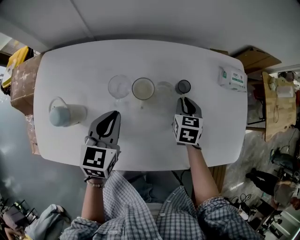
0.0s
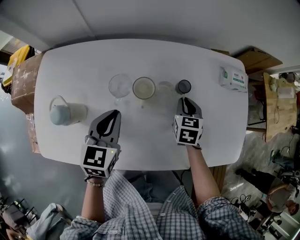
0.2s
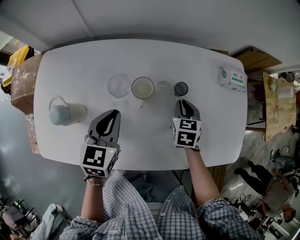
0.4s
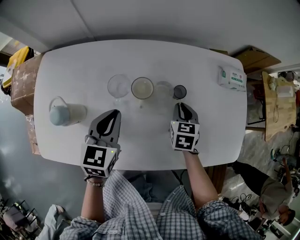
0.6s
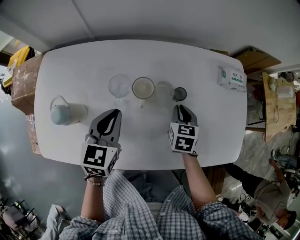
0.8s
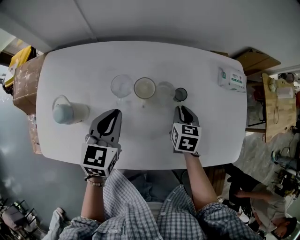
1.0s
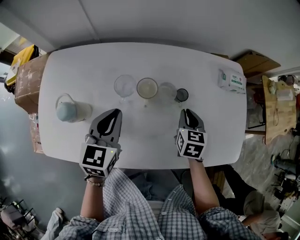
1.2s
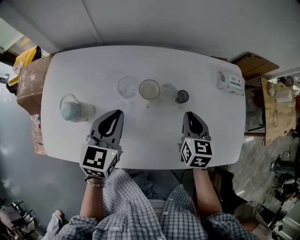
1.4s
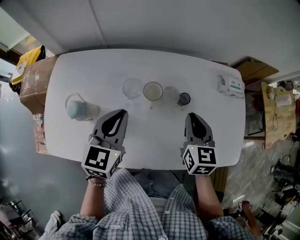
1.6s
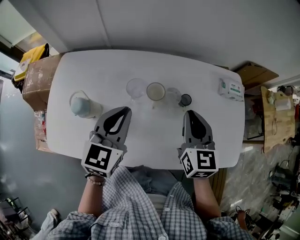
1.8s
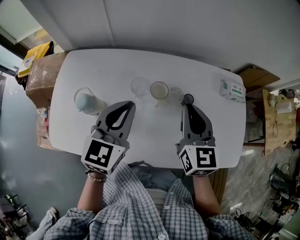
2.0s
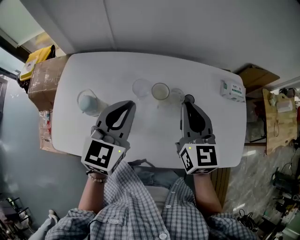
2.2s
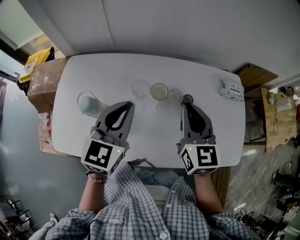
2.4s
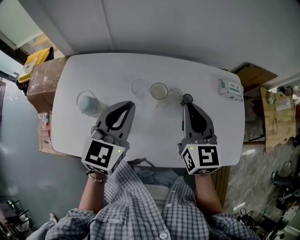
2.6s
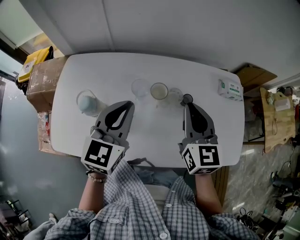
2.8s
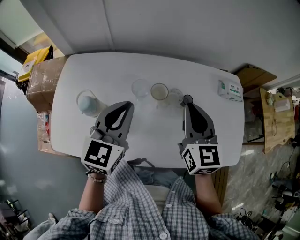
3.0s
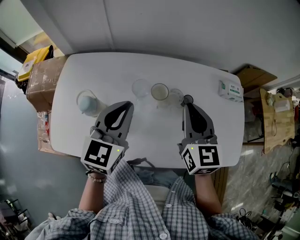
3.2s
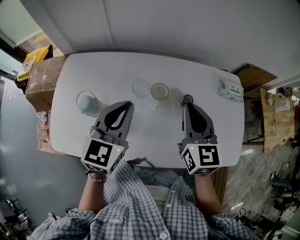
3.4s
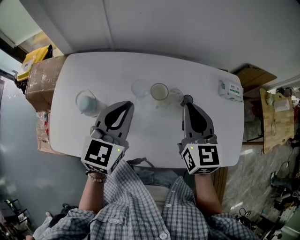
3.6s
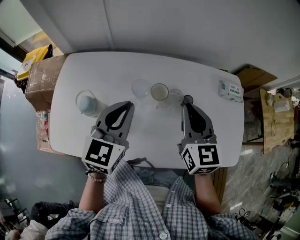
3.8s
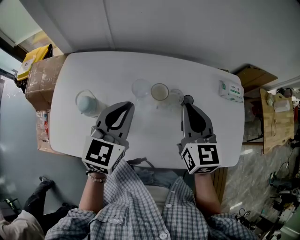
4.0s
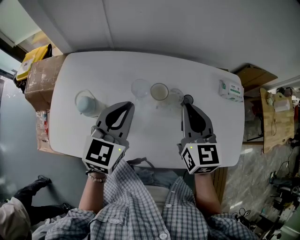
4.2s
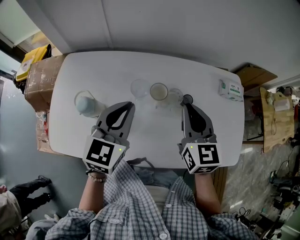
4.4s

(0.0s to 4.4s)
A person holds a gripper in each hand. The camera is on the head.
0.0s - 1.4s: The right gripper travels upward and backward by some 10 cm, while the left gripper changes place by about 5 cm.
1.4s - 3.0s: The right gripper shifts roughly 15 cm upward and to the left, and turns by some 20 degrees; the left gripper shifts approximately 10 cm upward.
3.0s - 4.4s: There are only small adjustments of the grippers.

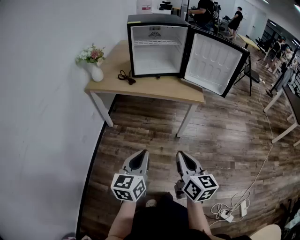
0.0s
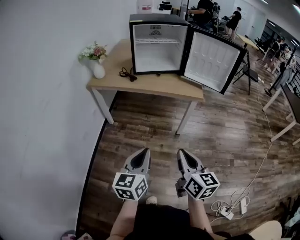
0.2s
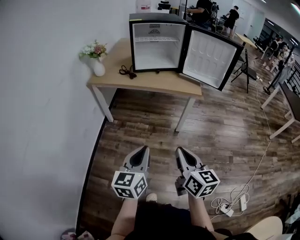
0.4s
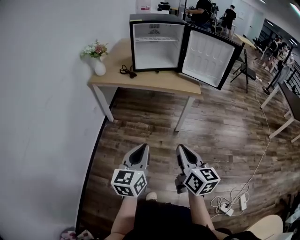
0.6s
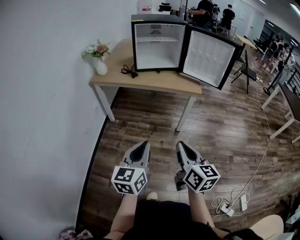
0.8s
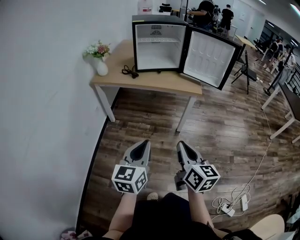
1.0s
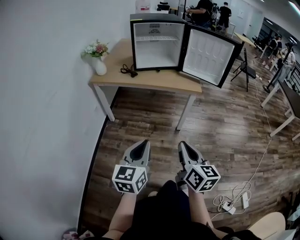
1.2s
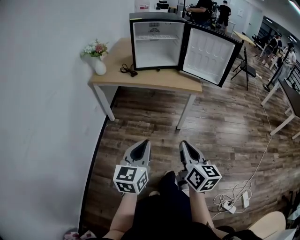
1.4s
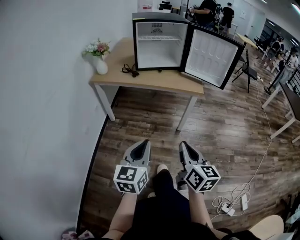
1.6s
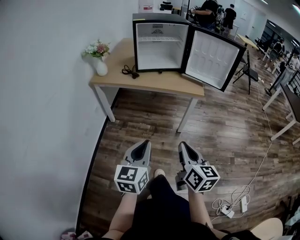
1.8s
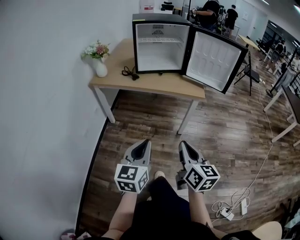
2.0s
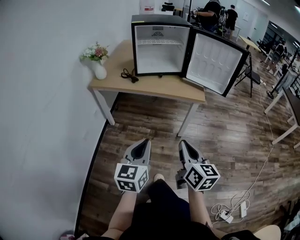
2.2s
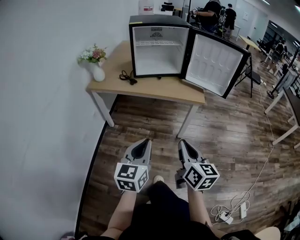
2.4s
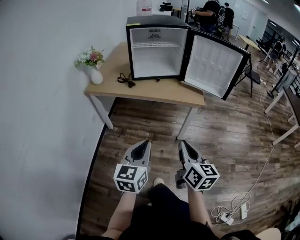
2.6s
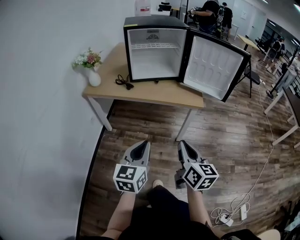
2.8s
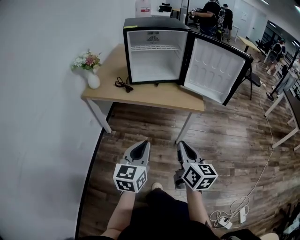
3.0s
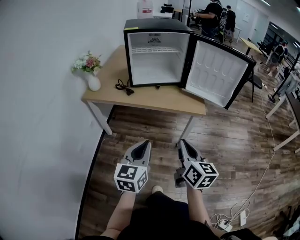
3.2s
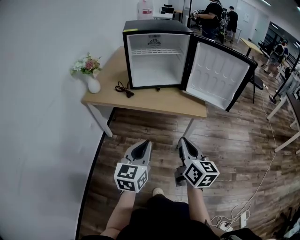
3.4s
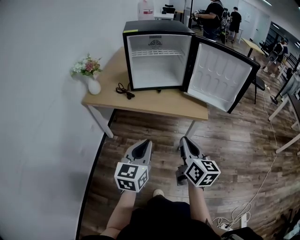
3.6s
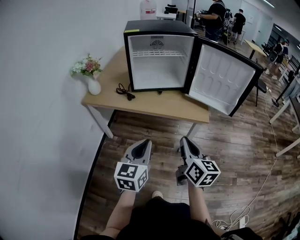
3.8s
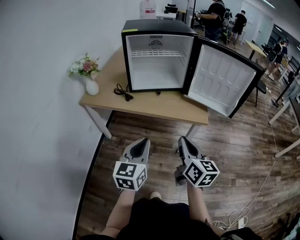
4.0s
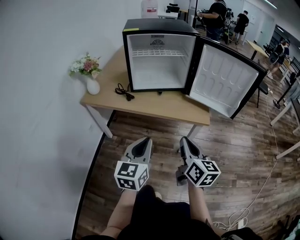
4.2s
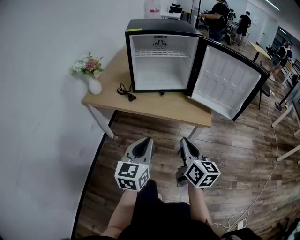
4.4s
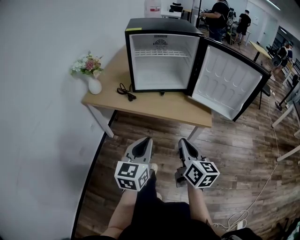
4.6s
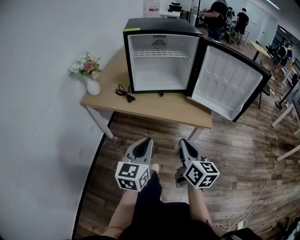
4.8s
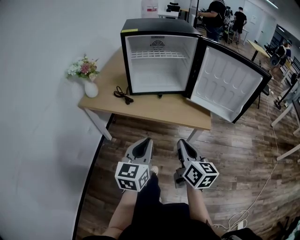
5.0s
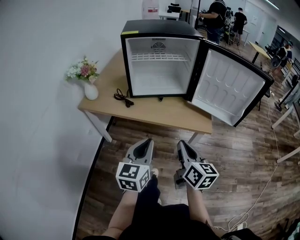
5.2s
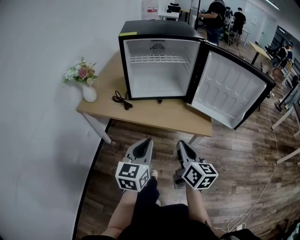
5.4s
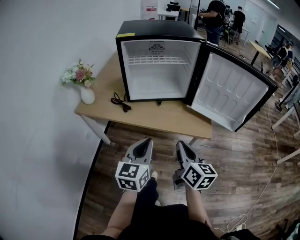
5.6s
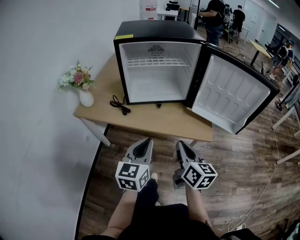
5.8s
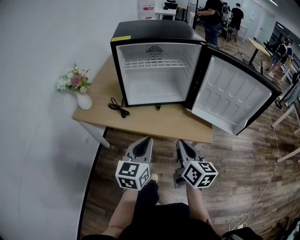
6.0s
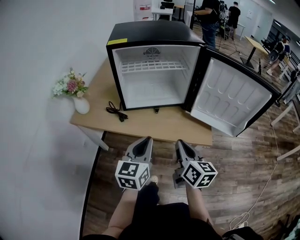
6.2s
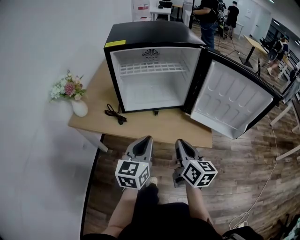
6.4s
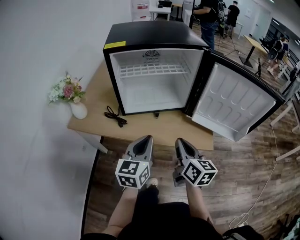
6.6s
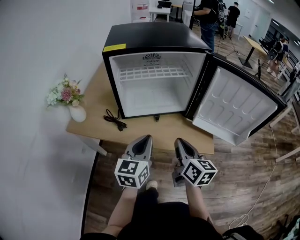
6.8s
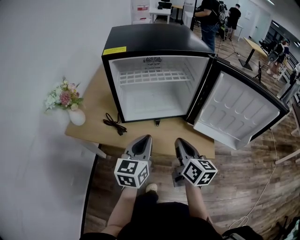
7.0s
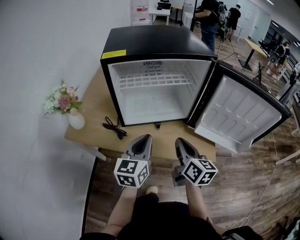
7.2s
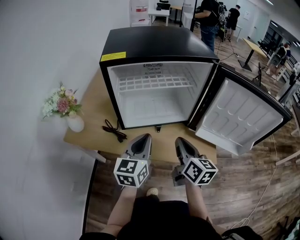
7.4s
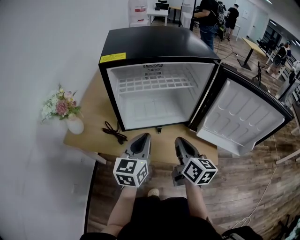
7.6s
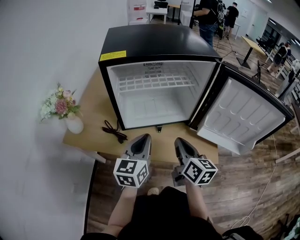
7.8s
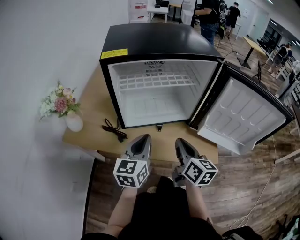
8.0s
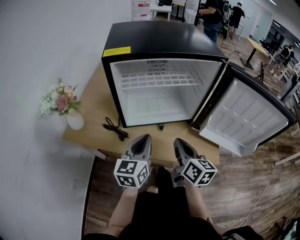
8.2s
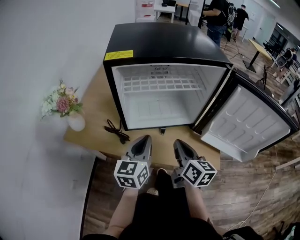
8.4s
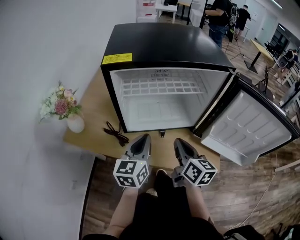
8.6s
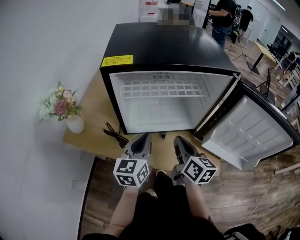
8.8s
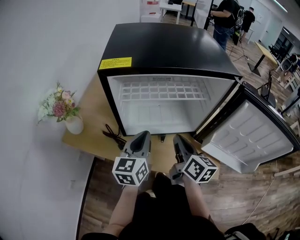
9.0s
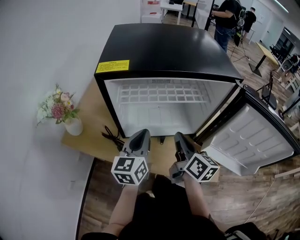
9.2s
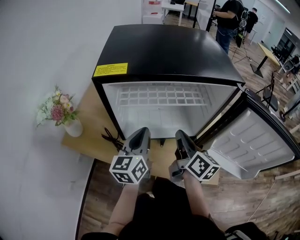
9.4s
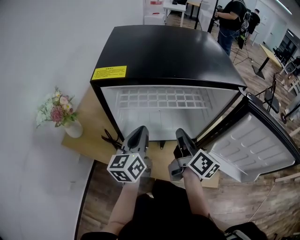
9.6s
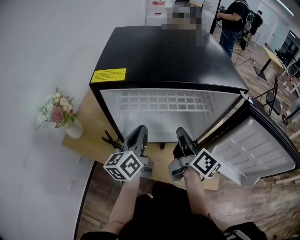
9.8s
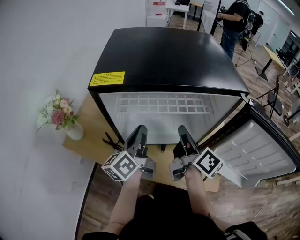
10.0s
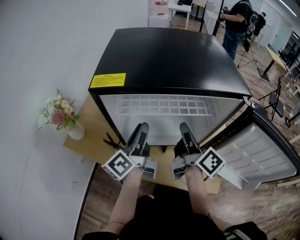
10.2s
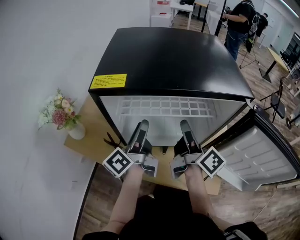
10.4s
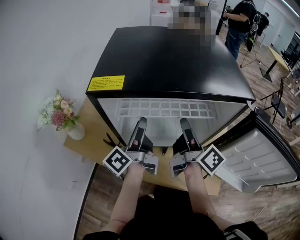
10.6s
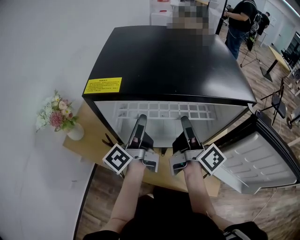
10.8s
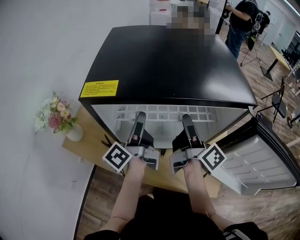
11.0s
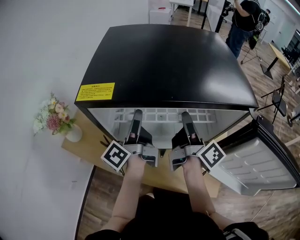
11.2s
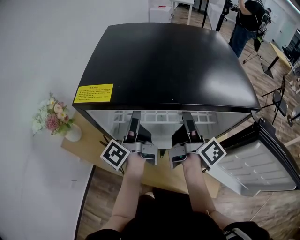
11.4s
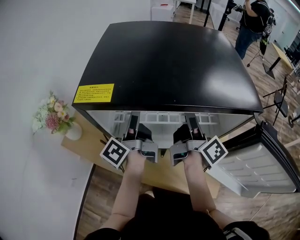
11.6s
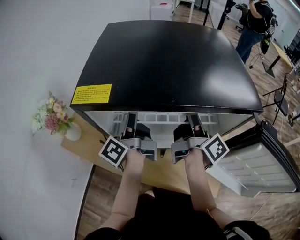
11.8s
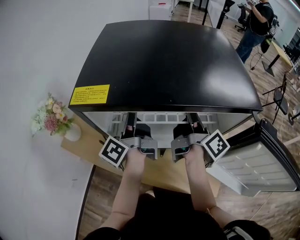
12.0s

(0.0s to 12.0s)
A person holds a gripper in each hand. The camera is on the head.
0.0s - 1.6s: The two grippers go approximately 5 cm backward.
1.6s - 3.0s: The grippers both shift forward by some 15 cm.
3.0s - 4.4s: Both grippers travel together forward, approximately 10 cm.
4.4s - 6.0s: The grippers both shift forward by about 15 cm.
6.0s - 7.6s: Both grippers travel together forward, some 20 cm.
7.6s - 9.0s: Both grippers move forward, some 10 cm.
9.0s - 10.4s: The right gripper is displaced forward and upward by about 10 cm, turns by approximately 30 degrees, and opens its fingers, while the left gripper heads forward, covering about 10 cm, rotates around the line of its fingers by some 50 degrees, counterclockwise from behind, and opens its fingers.
10.4s - 12.0s: The grippers both shift forward by approximately 10 cm. The right gripper closes up.

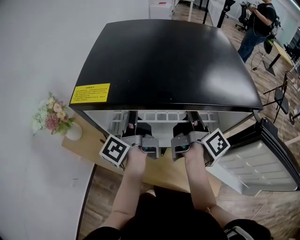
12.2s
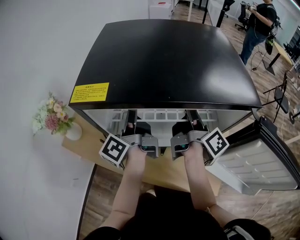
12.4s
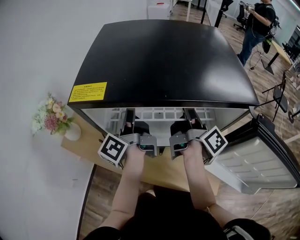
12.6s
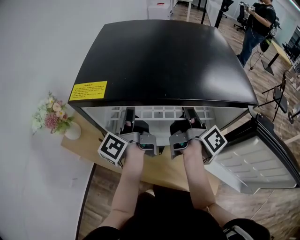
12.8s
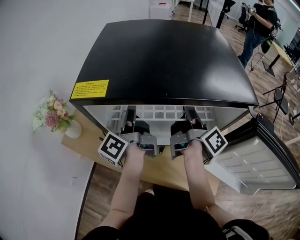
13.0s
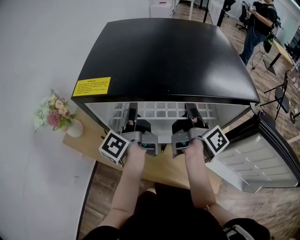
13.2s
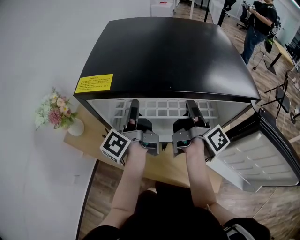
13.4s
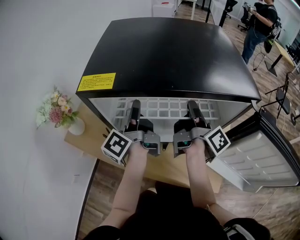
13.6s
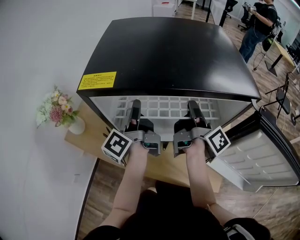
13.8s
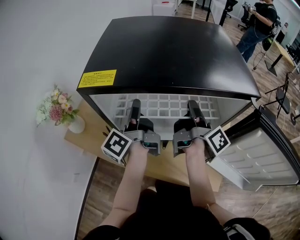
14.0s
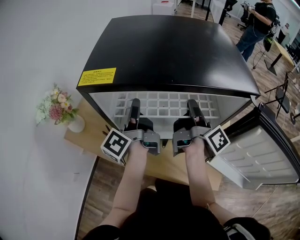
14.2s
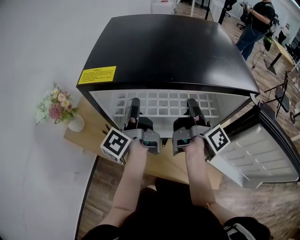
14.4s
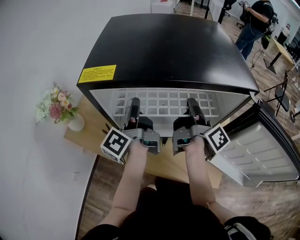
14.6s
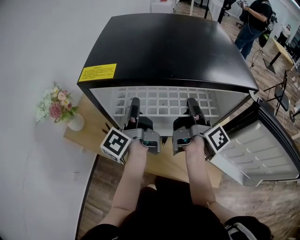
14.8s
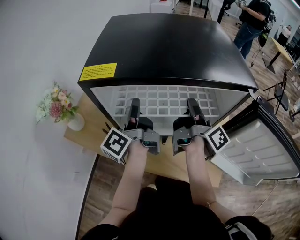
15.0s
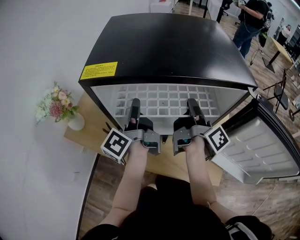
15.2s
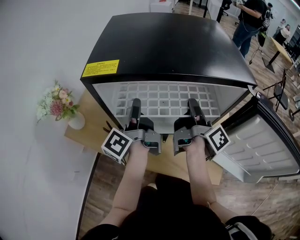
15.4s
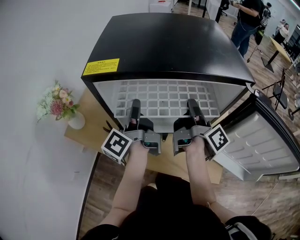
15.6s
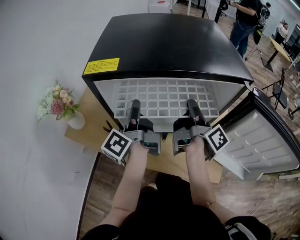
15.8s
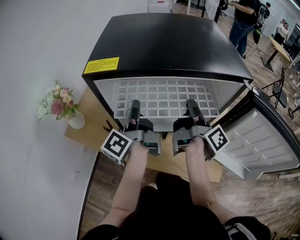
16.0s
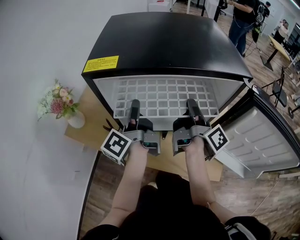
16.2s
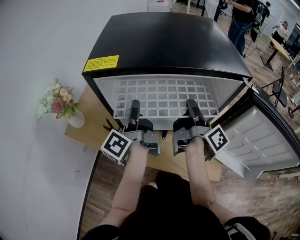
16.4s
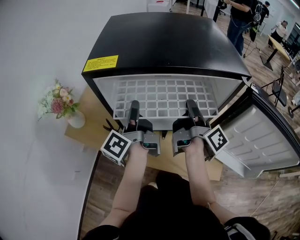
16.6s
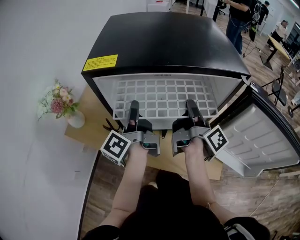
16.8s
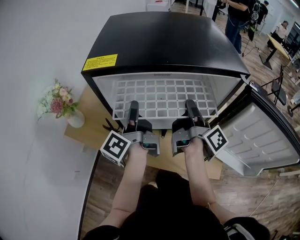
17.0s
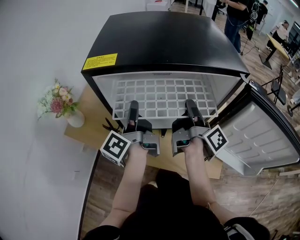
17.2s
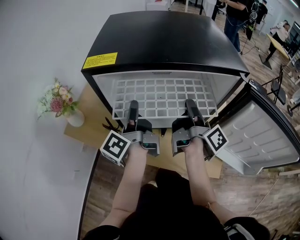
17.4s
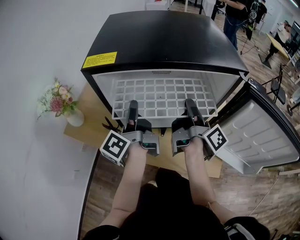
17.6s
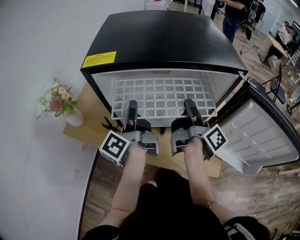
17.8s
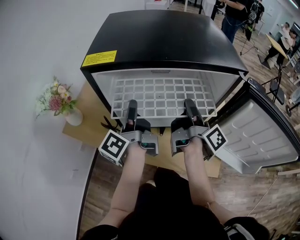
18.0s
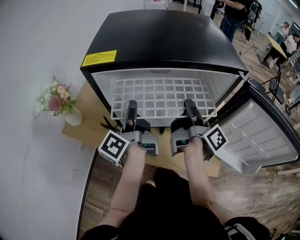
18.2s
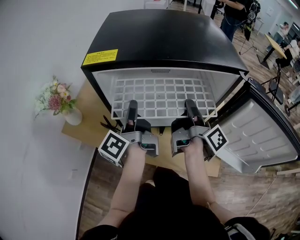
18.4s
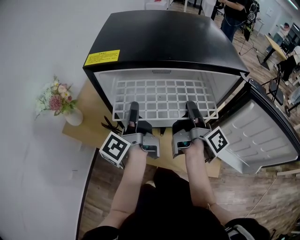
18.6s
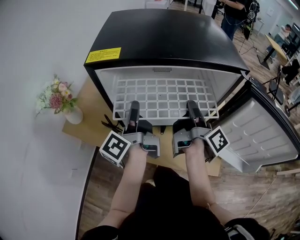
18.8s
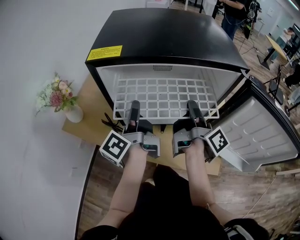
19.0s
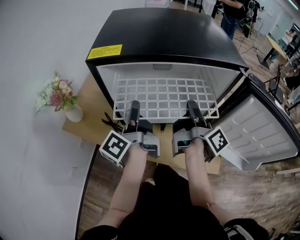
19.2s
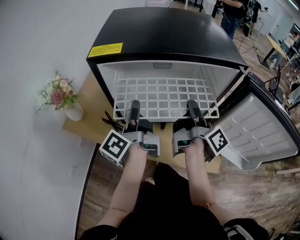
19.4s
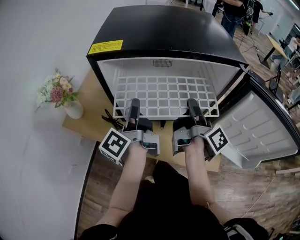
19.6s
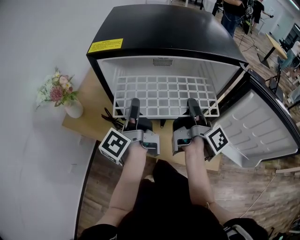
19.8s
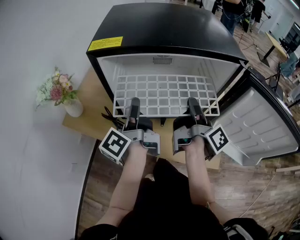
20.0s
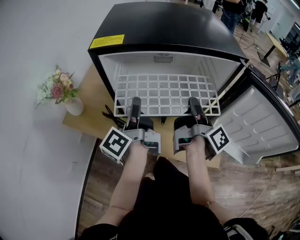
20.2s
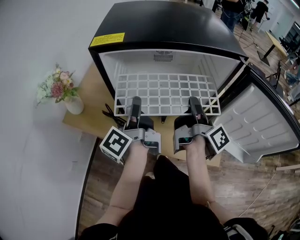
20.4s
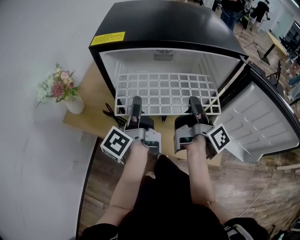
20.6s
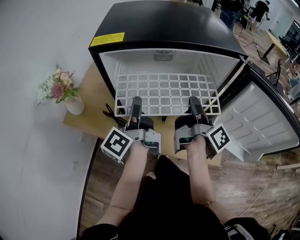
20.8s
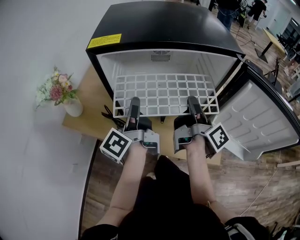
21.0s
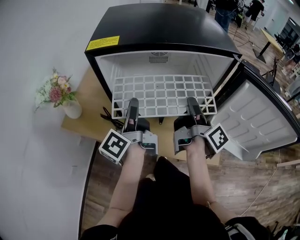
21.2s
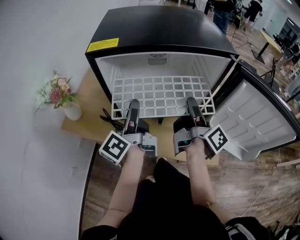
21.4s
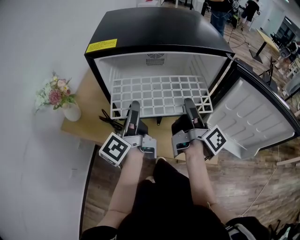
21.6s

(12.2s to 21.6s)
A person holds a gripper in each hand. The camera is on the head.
12.2s - 15.4s: The grippers move only a little.
15.4s - 17.0s: The grippers move only a little.
17.0s - 18.4s: Neither gripper changes place.
18.4s - 20.0s: There are only small adjustments of the grippers.
20.0s - 21.6s: The left gripper opens; the right gripper opens its fingers.
